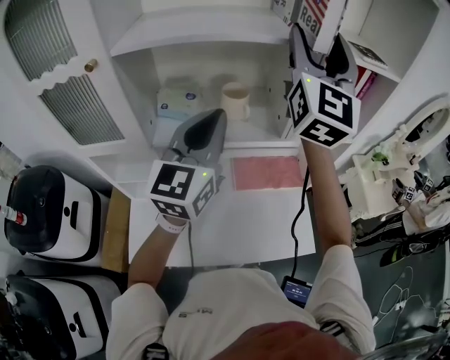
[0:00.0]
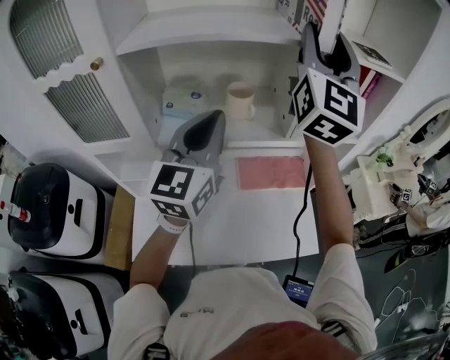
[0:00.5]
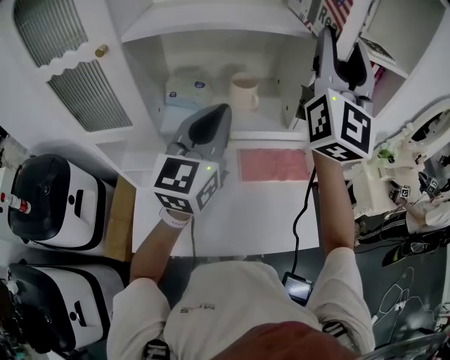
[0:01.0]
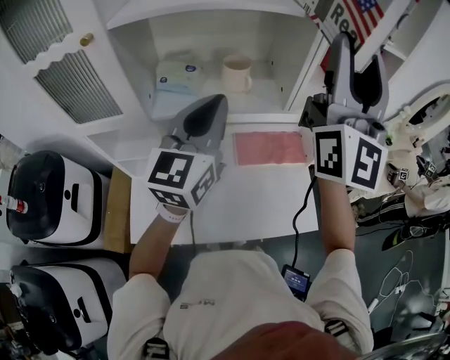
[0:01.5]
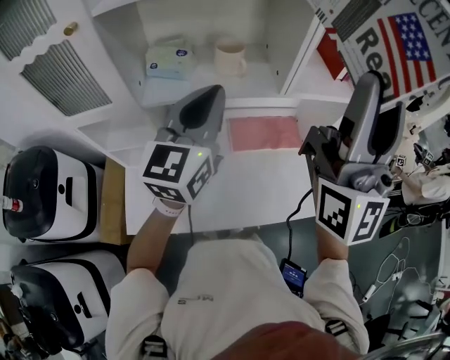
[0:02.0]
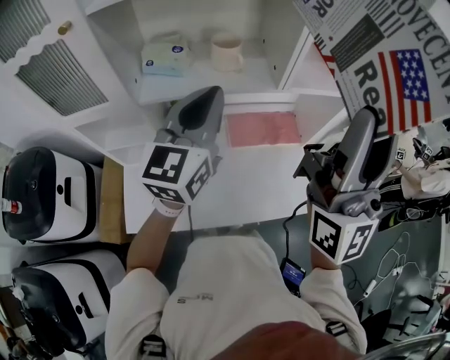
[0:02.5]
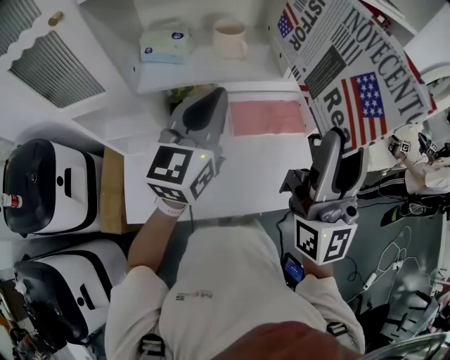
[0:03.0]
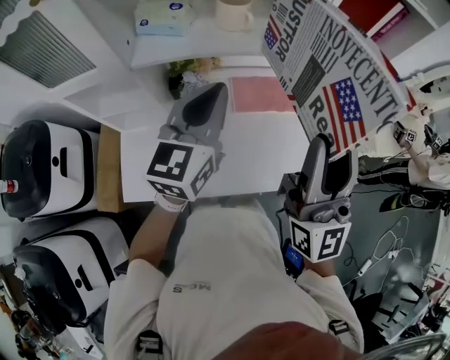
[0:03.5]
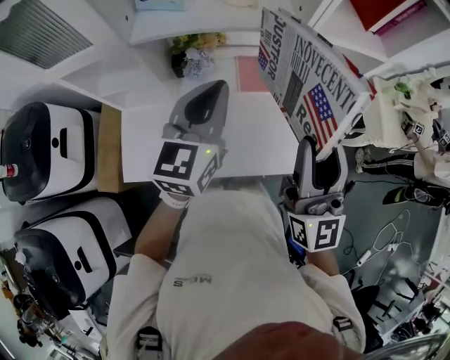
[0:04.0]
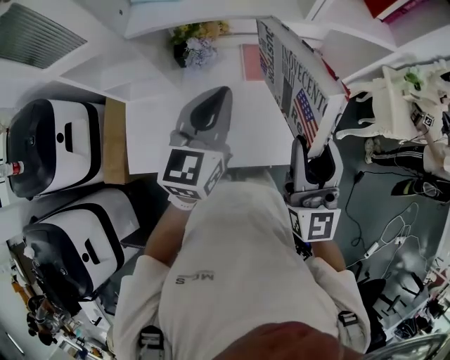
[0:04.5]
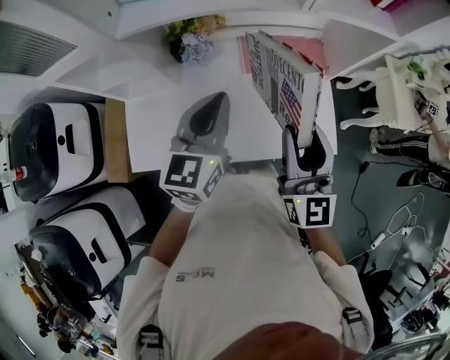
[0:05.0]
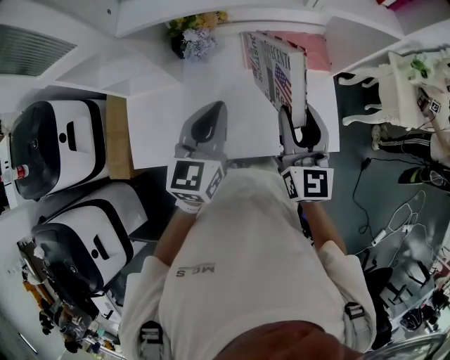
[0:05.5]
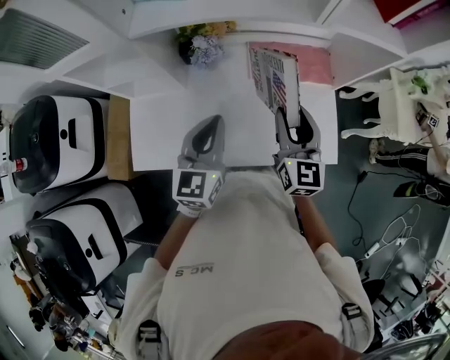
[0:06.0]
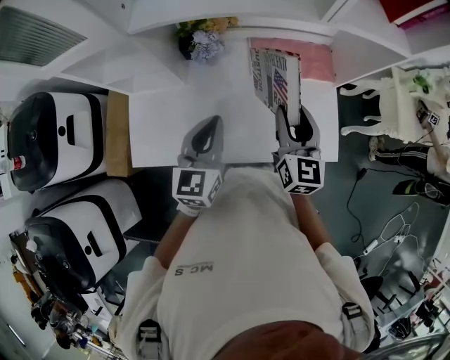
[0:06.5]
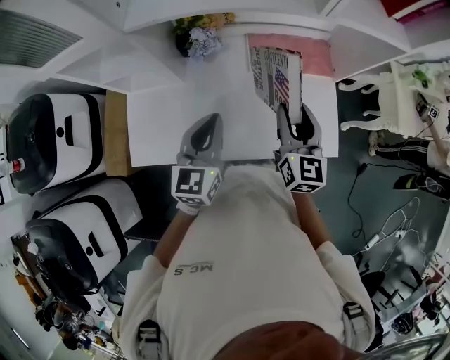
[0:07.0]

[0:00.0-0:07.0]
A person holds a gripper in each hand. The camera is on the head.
0:00.0 to 0:02.0: The right gripper is displaced backward by approximately 20 cm, swivels some 20 degrees, and closes up.
0:02.0 to 0:03.5: The left gripper moves downward, some 10 cm. The right gripper moves downward, roughly 20 cm, and rotates about 20 degrees.
0:03.5 to 0:05.0: The right gripper moves downward, some 20 cm, and turns by some 30 degrees; the left gripper is displaced downward by some 10 cm.
0:05.0 to 0:07.0: The left gripper travels downward by roughly 10 cm. Meanwhile the right gripper travels downward and forward by approximately 10 cm.

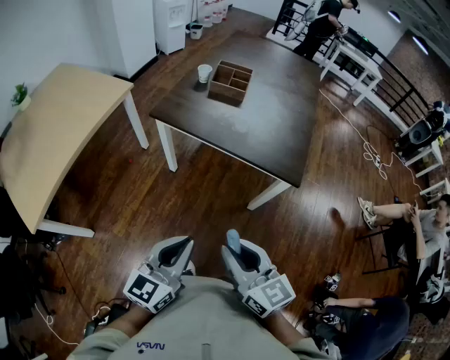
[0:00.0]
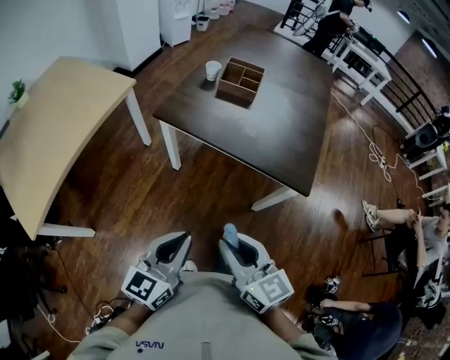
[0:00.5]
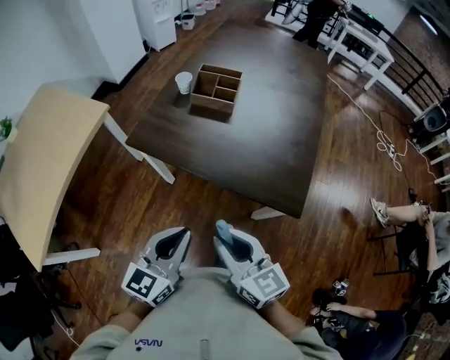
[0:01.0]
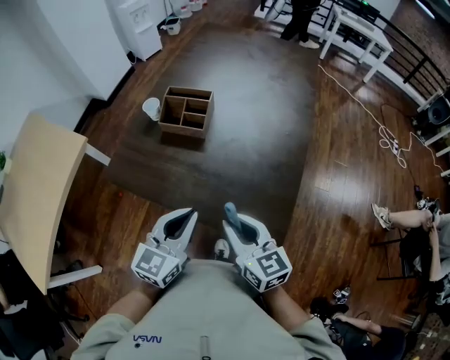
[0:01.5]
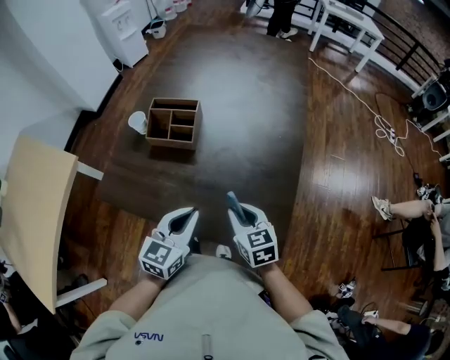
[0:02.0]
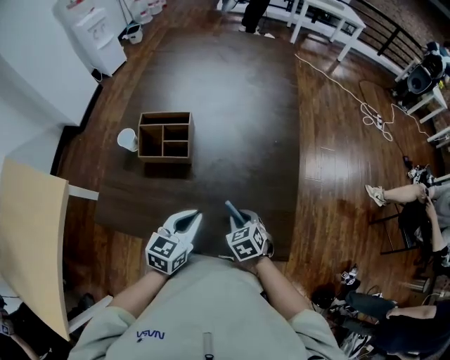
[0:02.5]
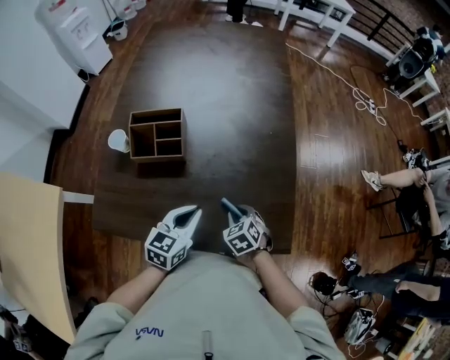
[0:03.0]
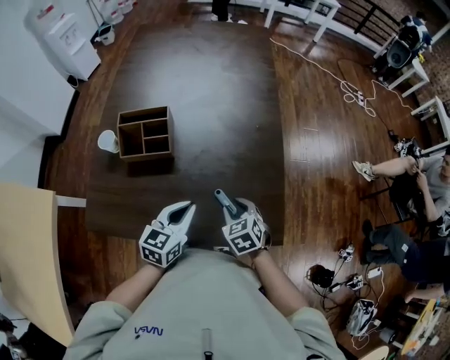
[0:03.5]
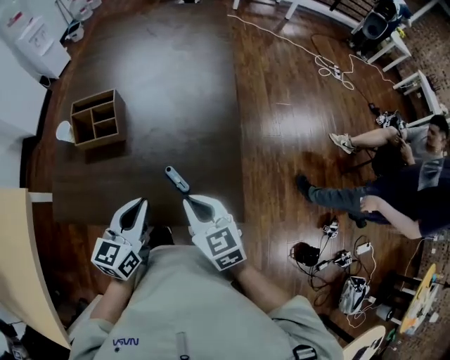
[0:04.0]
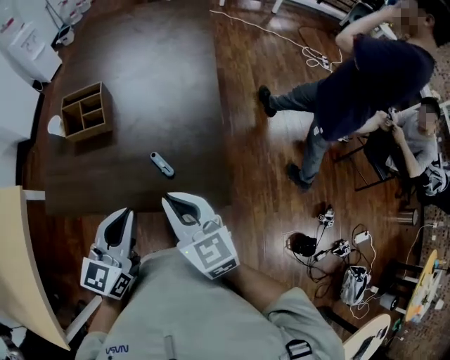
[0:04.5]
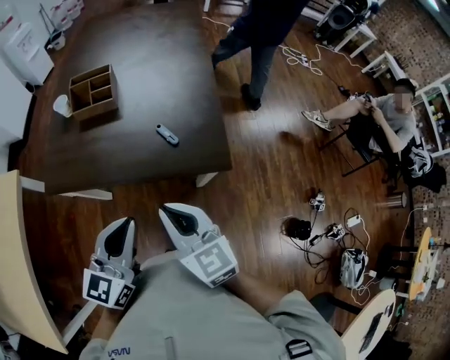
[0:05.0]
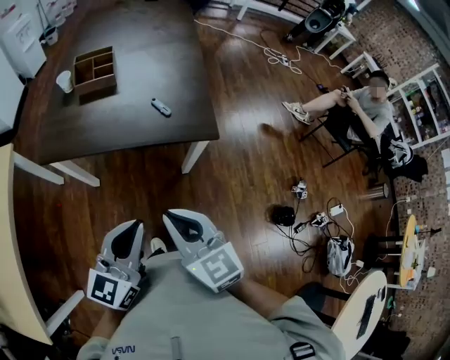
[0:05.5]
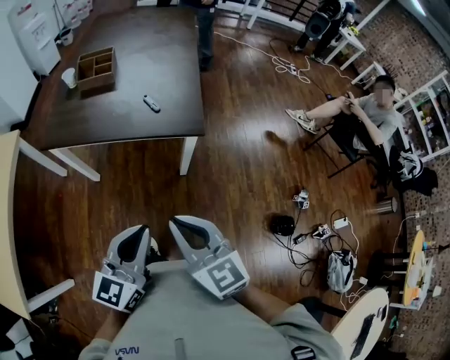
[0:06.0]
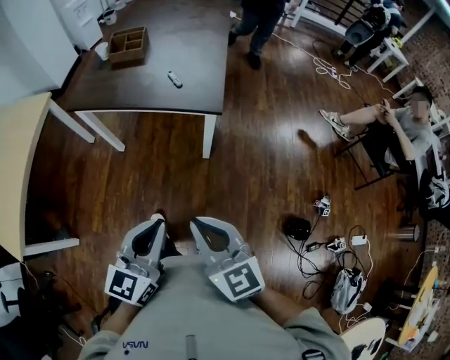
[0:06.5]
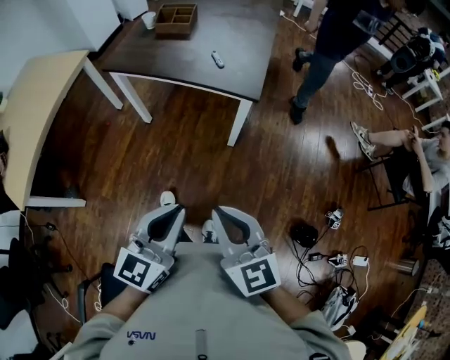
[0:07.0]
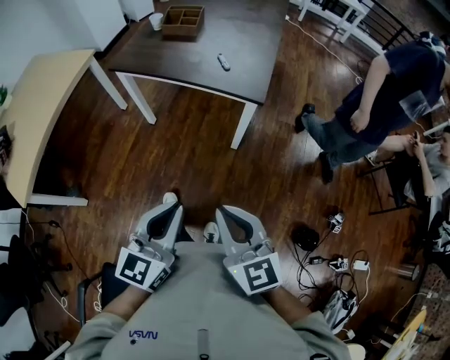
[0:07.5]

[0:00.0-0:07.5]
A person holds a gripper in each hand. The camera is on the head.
0:00.0 to 0:02.0: The two grippers travel together, forward and to the right, approximately 40 cm. The right gripper turns by some 30 degrees.
0:02.0 to 0:04.0: The right gripper travels downward and back again, some 10 cm each way.
0:04.0 to 0:05.5: Both grippers move backward, some 30 cm.
0:05.5 to 0:07.5: The two grippers go about 25 cm backward and to the right. The left gripper swivels about 20 degrees.

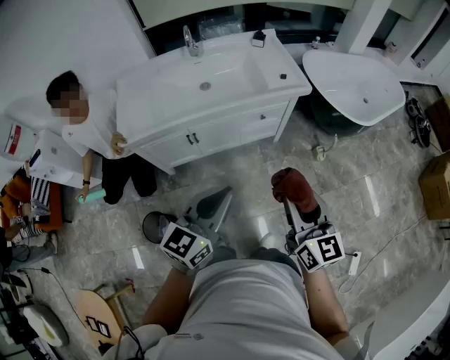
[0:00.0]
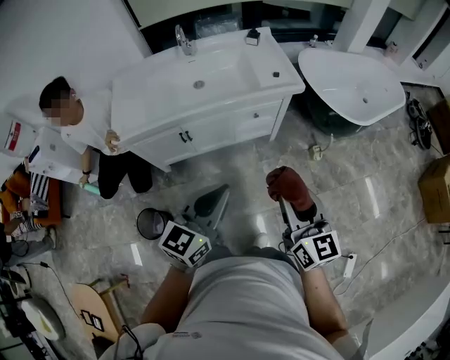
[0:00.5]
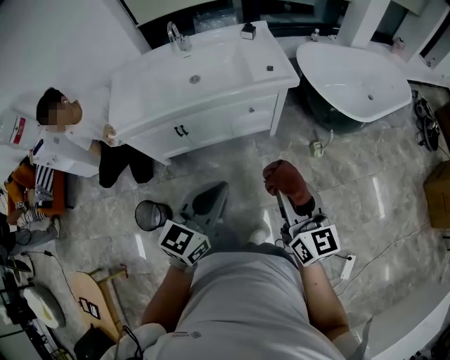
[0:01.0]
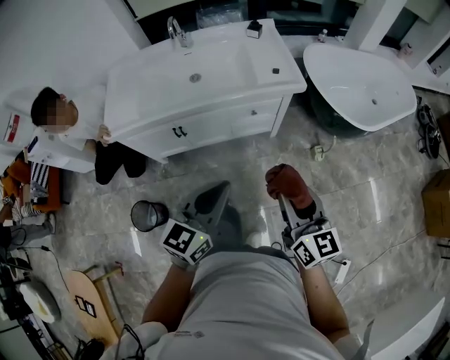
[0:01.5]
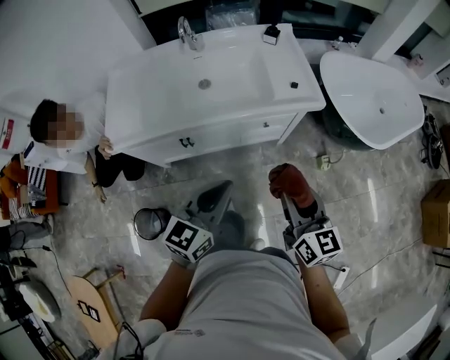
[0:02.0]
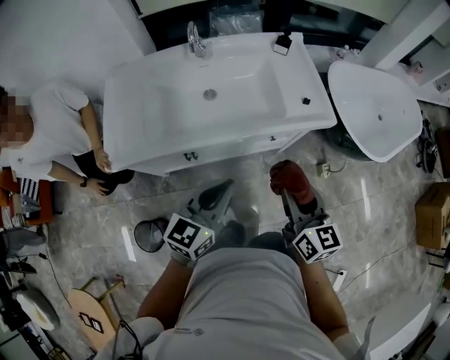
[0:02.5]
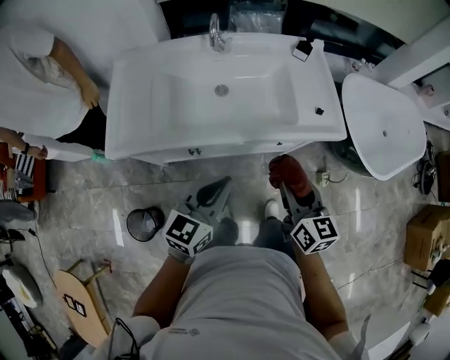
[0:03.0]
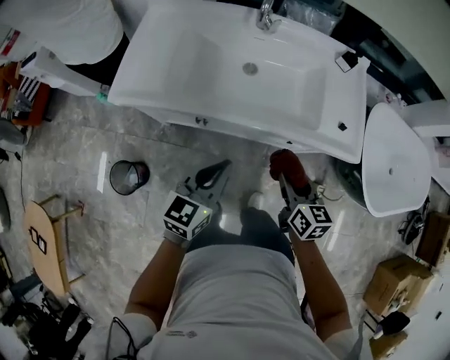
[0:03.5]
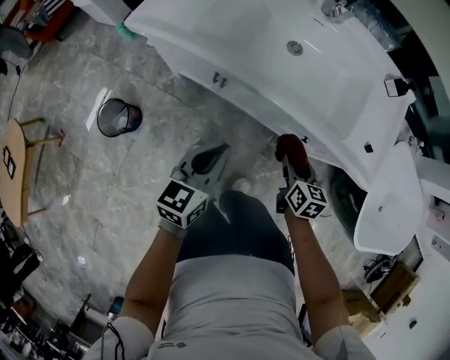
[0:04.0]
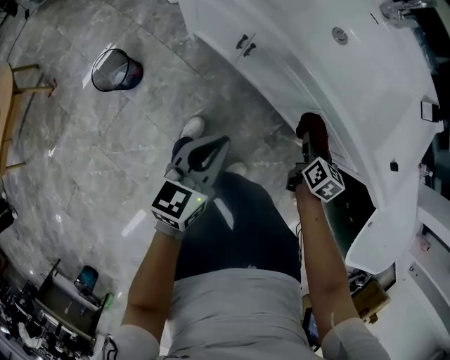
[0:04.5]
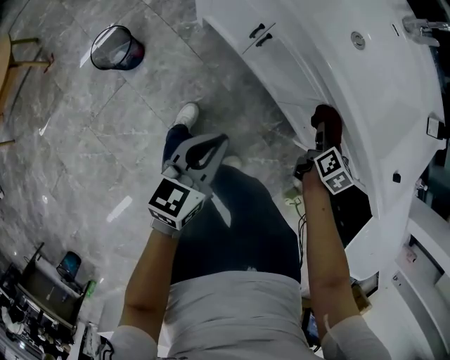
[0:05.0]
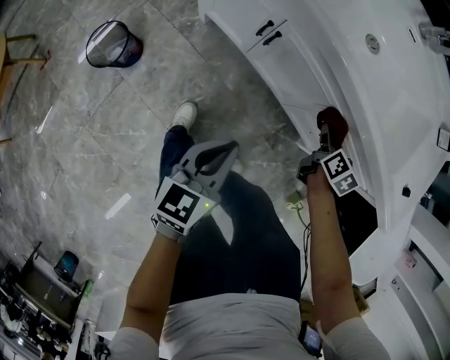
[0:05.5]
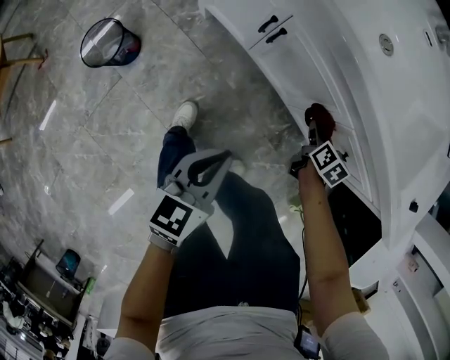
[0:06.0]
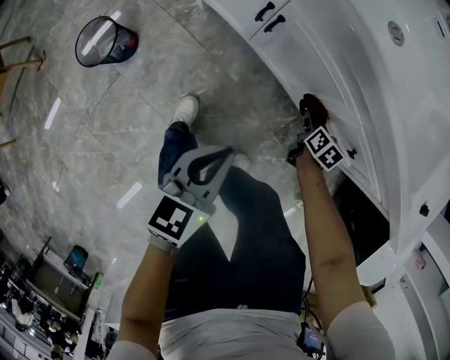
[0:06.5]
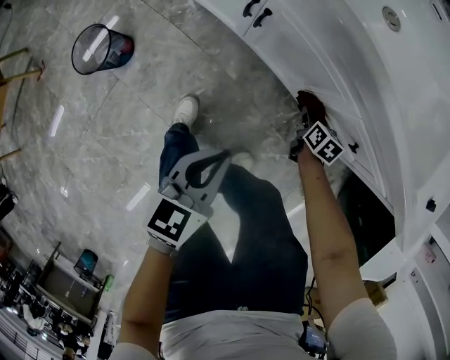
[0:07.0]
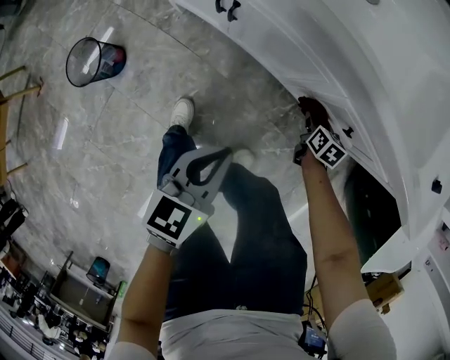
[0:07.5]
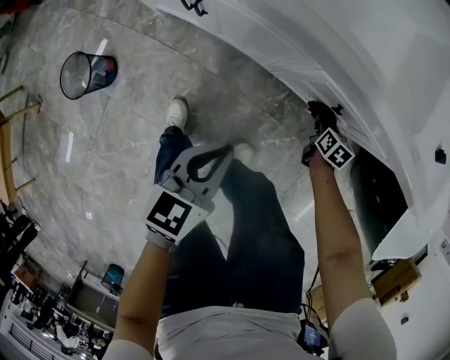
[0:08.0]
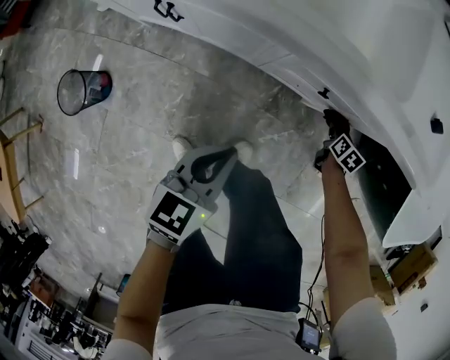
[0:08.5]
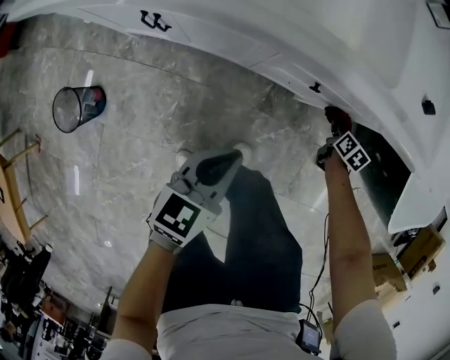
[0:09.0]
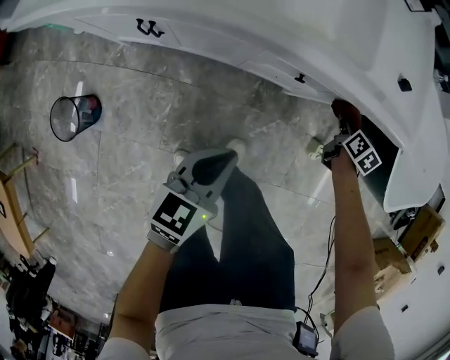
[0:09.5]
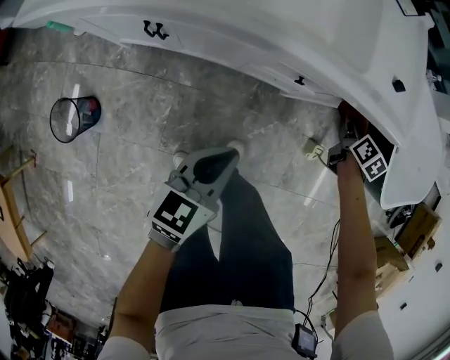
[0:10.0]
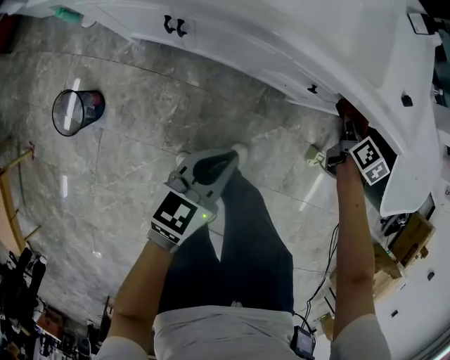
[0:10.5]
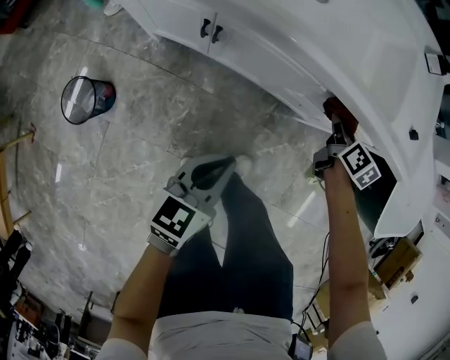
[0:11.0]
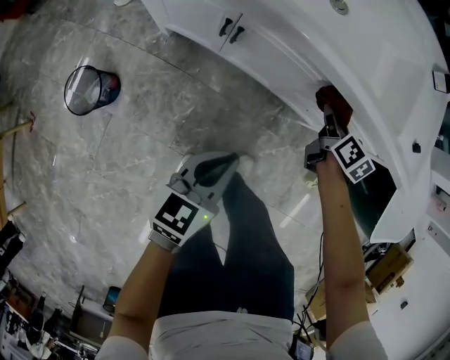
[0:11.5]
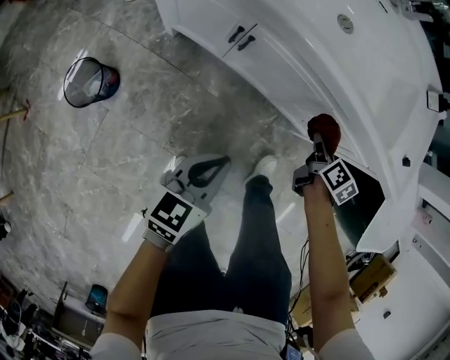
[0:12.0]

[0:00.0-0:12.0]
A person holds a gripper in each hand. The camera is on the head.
0:00.0 to 0:02.0: The two grippers go roughly 15 cm forward.
0:02.0 to 0:04.0: The right gripper shifts roughly 30 cm downward, and turns by roughly 40 degrees; the left gripper moves downward, roughly 20 cm, and turns by some 40 degrees.
0:04.0 to 0:06.0: The right gripper goes about 25 cm downward and forward; the left gripper is displaced downward by approximately 20 cm.
0:06.0 to 0:08.0: The left gripper moves to the right, about 10 cm. The right gripper shifts approximately 20 cm to the right and downward.
0:08.0 to 0:10.0: The right gripper is displaced upward and to the right by some 25 cm, and turns by about 20 degrees. The left gripper moves upward, some 5 cm.
0:10.0 to 0:12.0: The left gripper shifts some 15 cm to the left and backward; the right gripper goes about 25 cm to the left.
